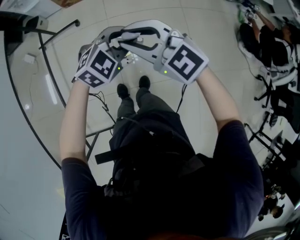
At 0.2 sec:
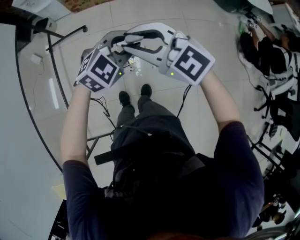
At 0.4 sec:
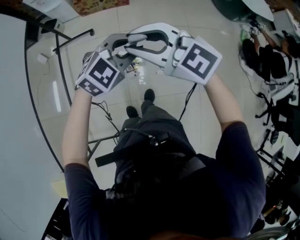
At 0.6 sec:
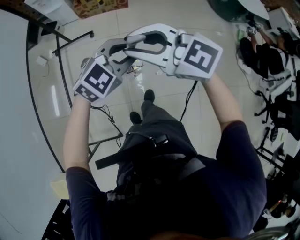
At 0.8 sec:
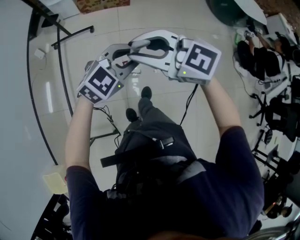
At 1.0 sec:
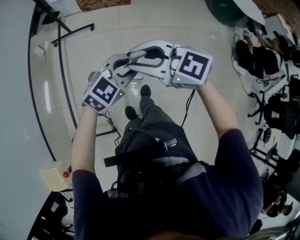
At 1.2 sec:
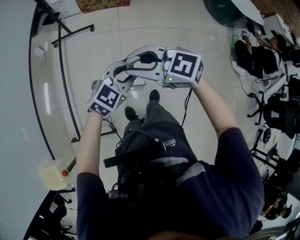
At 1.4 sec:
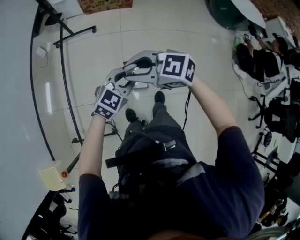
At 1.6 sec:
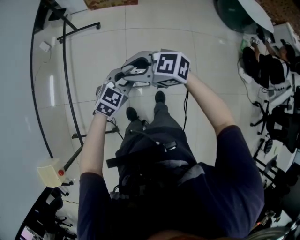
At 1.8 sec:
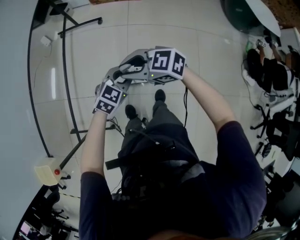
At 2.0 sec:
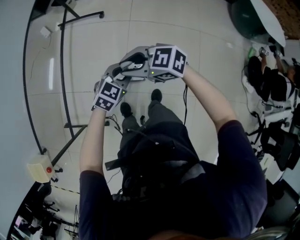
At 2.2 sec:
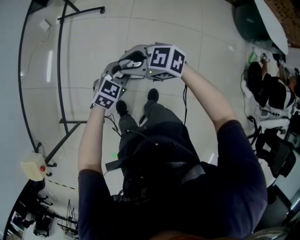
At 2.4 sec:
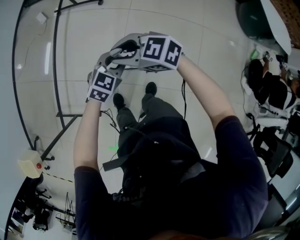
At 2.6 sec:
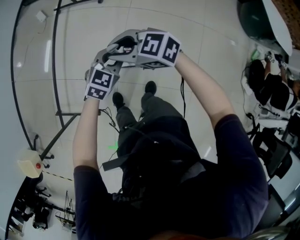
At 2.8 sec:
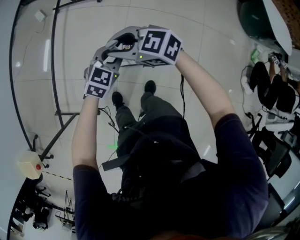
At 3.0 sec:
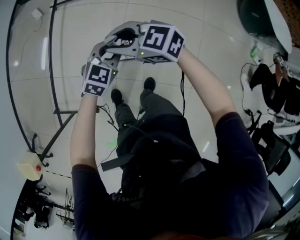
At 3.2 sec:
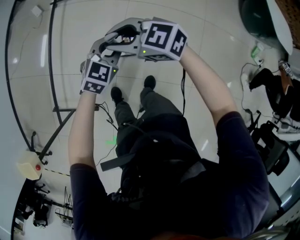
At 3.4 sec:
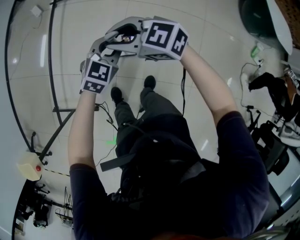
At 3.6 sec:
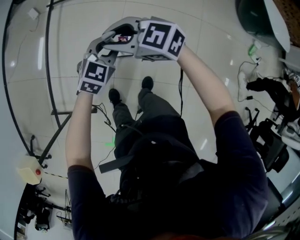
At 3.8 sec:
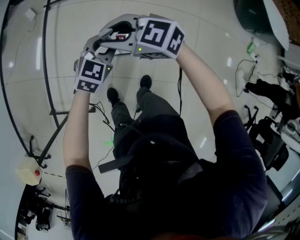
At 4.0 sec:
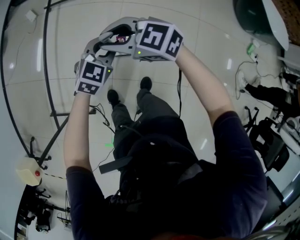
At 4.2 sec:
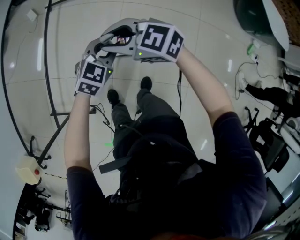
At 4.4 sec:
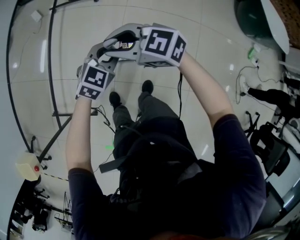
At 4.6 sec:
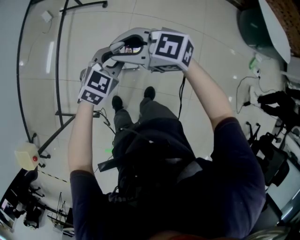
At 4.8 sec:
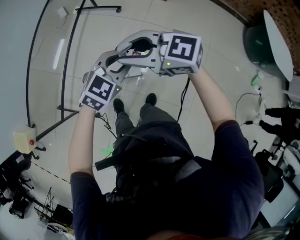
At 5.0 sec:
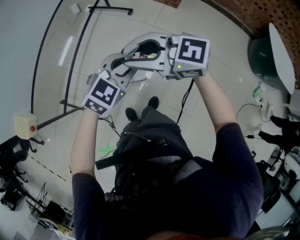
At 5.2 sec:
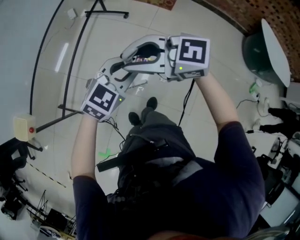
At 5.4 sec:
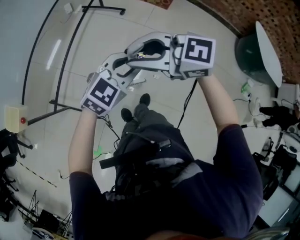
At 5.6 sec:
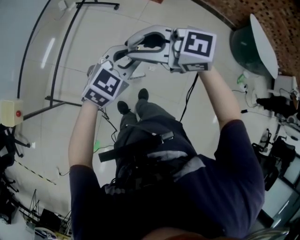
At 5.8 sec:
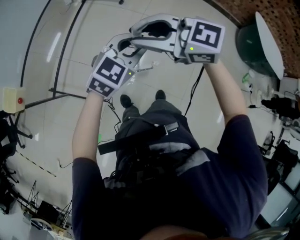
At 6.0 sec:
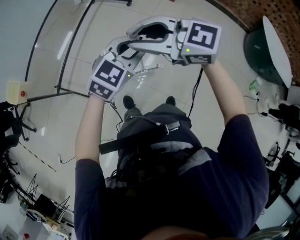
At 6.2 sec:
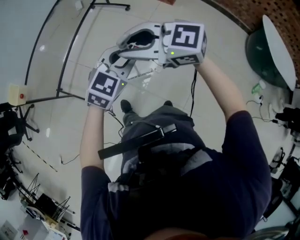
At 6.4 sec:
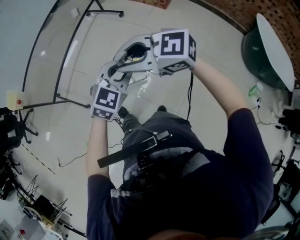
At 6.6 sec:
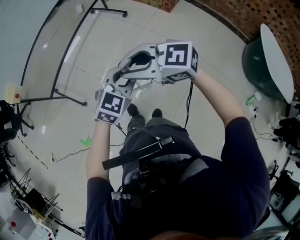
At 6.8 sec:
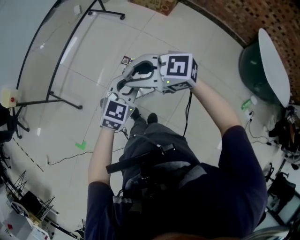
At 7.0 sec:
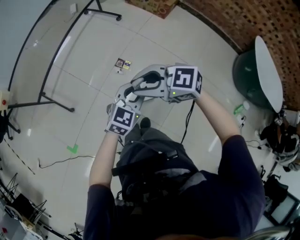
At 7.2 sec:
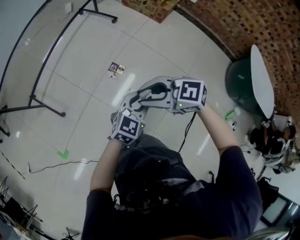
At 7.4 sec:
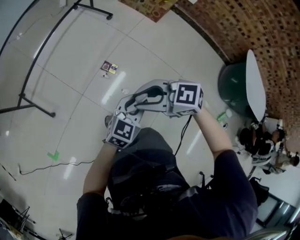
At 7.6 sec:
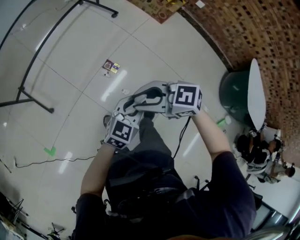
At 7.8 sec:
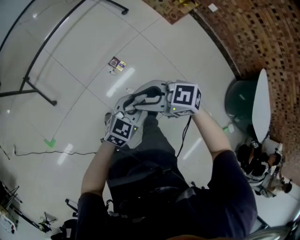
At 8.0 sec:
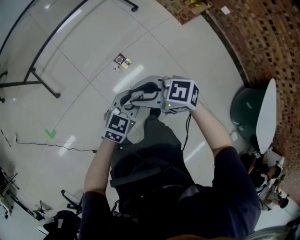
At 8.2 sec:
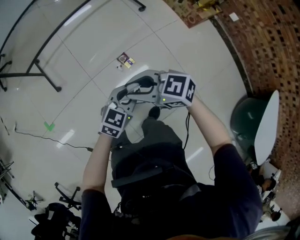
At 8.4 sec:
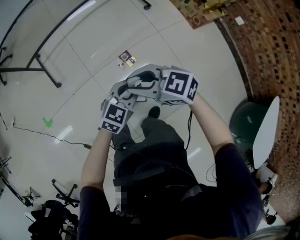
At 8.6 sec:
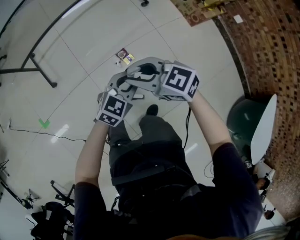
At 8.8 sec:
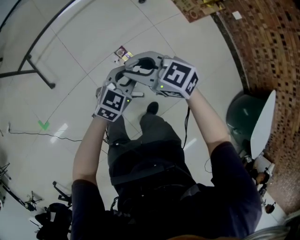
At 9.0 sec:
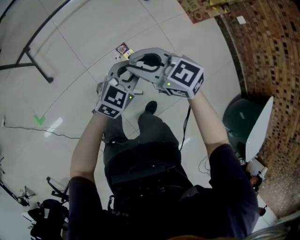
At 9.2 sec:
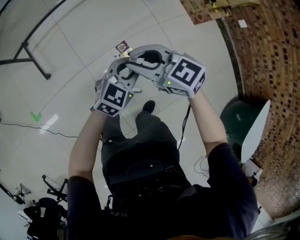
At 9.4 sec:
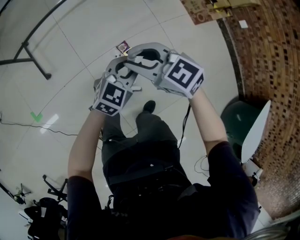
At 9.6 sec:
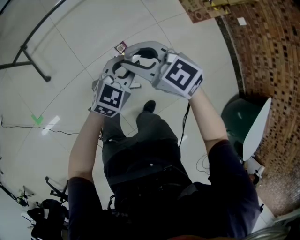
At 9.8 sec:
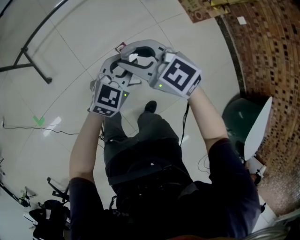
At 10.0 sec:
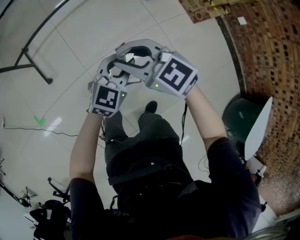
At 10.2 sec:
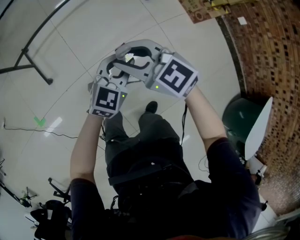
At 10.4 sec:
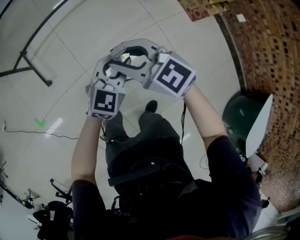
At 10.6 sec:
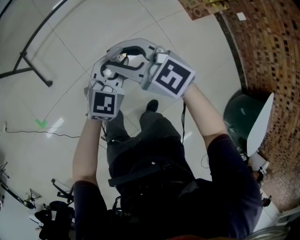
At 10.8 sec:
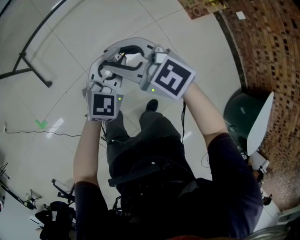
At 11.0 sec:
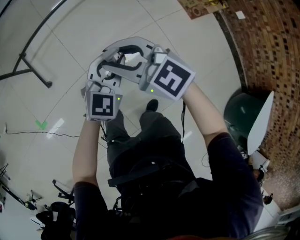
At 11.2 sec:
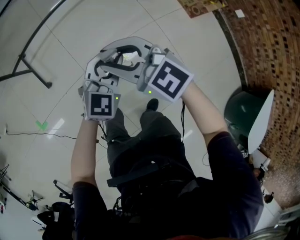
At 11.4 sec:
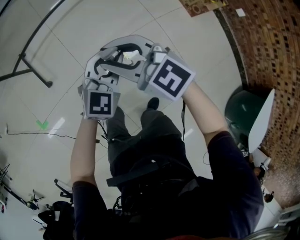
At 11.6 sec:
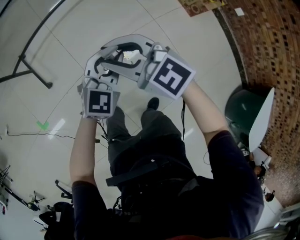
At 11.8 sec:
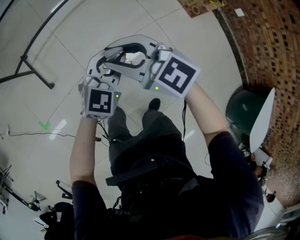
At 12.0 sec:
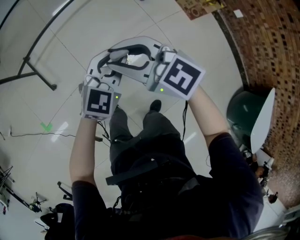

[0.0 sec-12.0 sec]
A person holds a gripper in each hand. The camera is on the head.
0.0 sec to 1.6 sec: The left gripper goes upward and returns, about 10 cm each way, and turns by some 30 degrees; the right gripper reaches about 10 cm upward, then returns, and rotates some 30 degrees.
1.6 sec to 3.0 sec: The left gripper shifts by about 15 cm, while the right gripper changes place by roughly 15 cm.
3.0 sec to 4.4 sec: There are only small adjustments of the grippers.
4.4 sec to 6.0 sec: The two grippers go roughly 20 cm upward.
6.0 sec to 7.6 sec: The left gripper ends up roughly 30 cm from where it was, and swivels some 20 degrees, while the right gripper changes place by approximately 30 cm, and turns by approximately 30 degrees.
7.6 sec to 9.0 sec: The left gripper ends up roughly 20 cm from where it was, while the right gripper changes place by about 20 cm.
9.0 sec to 10.4 sec: Both grippers travel together forward, some 5 cm.
10.4 sec to 12.0 sec: Both grippers move upward, about 5 cm.

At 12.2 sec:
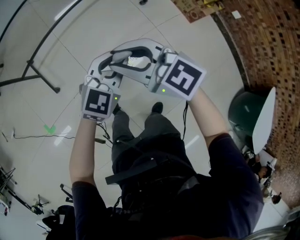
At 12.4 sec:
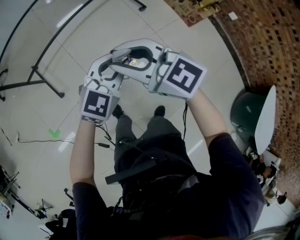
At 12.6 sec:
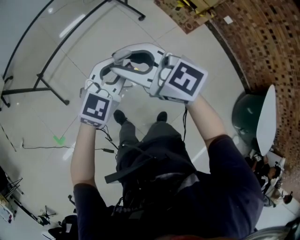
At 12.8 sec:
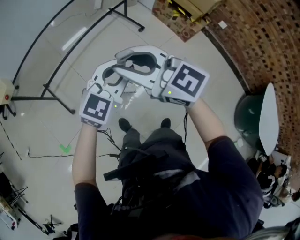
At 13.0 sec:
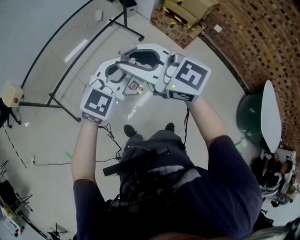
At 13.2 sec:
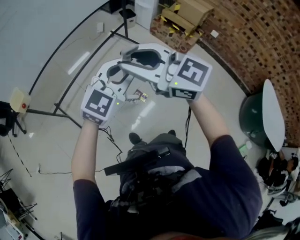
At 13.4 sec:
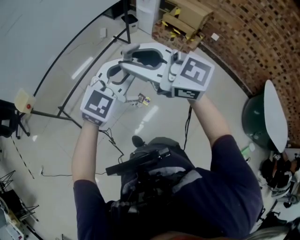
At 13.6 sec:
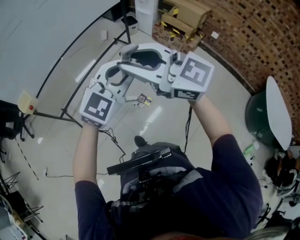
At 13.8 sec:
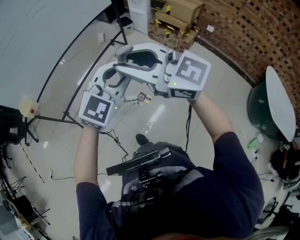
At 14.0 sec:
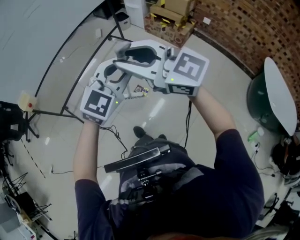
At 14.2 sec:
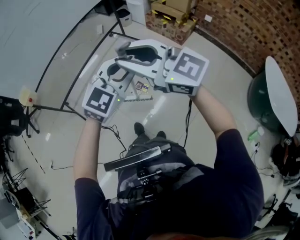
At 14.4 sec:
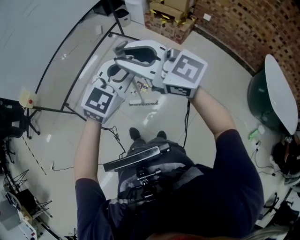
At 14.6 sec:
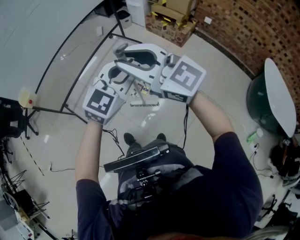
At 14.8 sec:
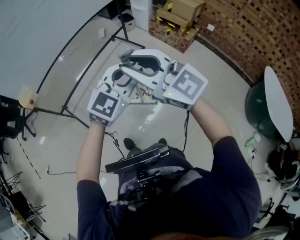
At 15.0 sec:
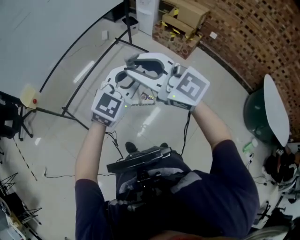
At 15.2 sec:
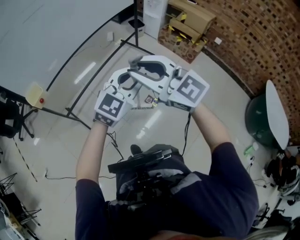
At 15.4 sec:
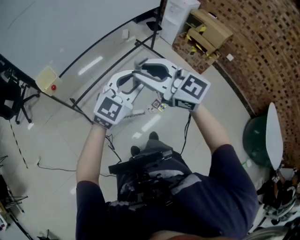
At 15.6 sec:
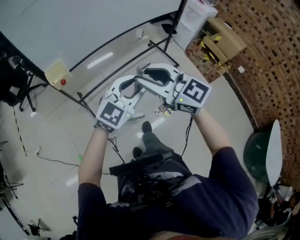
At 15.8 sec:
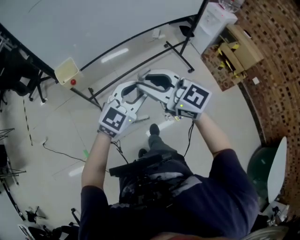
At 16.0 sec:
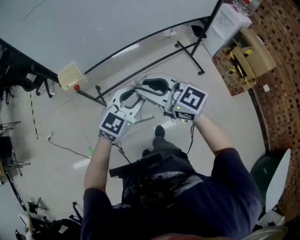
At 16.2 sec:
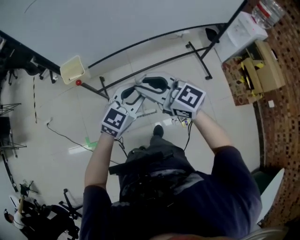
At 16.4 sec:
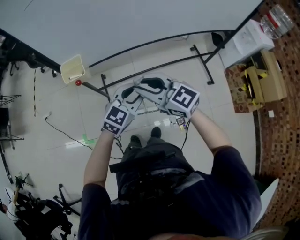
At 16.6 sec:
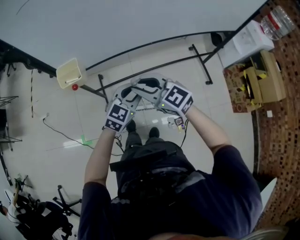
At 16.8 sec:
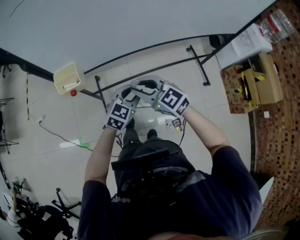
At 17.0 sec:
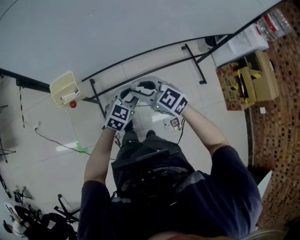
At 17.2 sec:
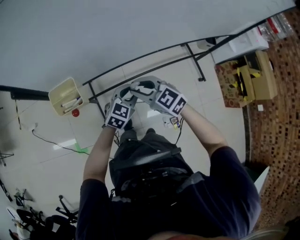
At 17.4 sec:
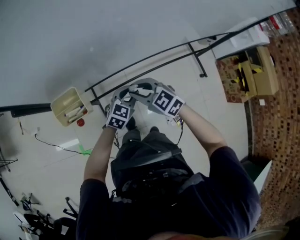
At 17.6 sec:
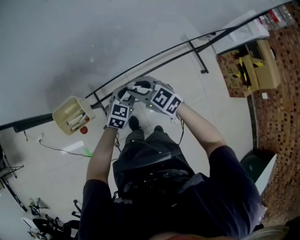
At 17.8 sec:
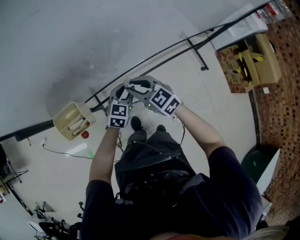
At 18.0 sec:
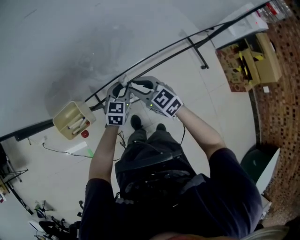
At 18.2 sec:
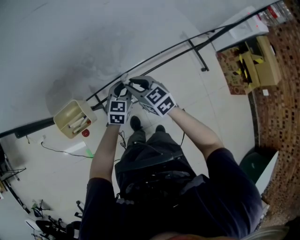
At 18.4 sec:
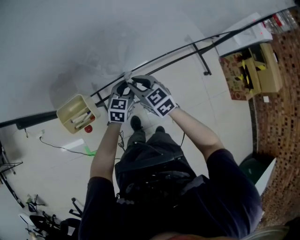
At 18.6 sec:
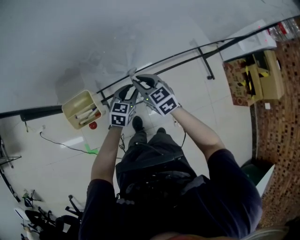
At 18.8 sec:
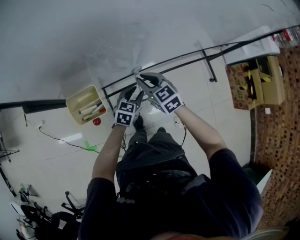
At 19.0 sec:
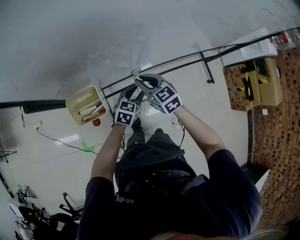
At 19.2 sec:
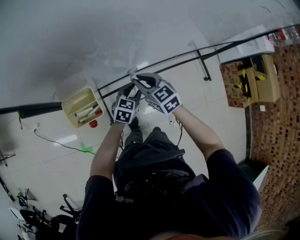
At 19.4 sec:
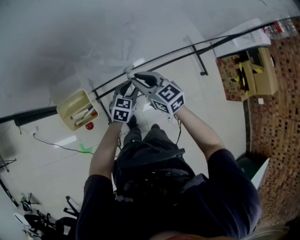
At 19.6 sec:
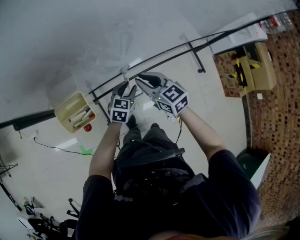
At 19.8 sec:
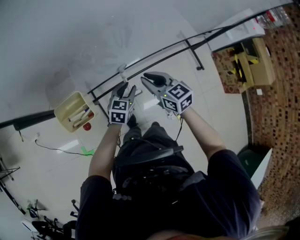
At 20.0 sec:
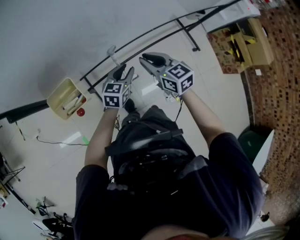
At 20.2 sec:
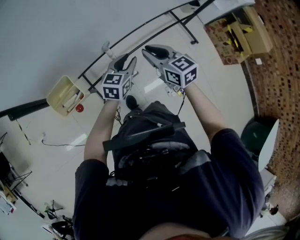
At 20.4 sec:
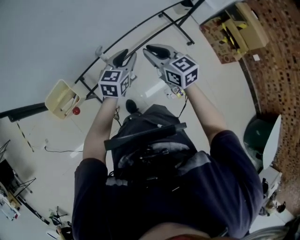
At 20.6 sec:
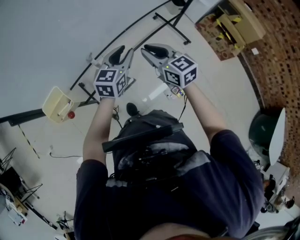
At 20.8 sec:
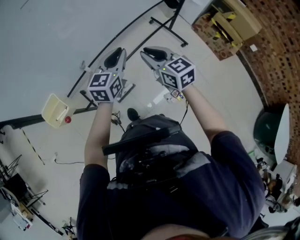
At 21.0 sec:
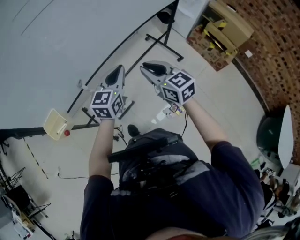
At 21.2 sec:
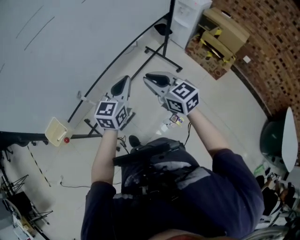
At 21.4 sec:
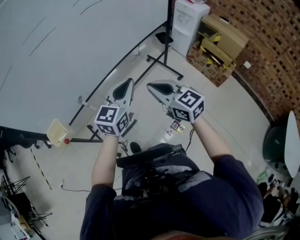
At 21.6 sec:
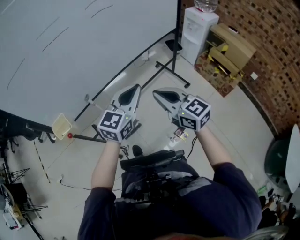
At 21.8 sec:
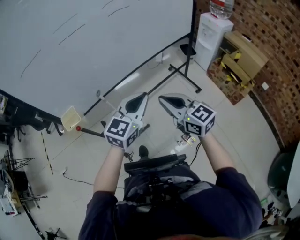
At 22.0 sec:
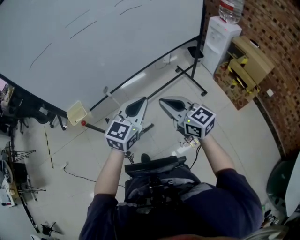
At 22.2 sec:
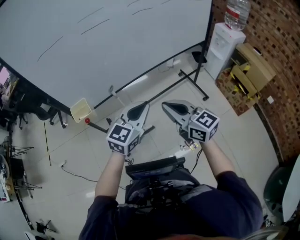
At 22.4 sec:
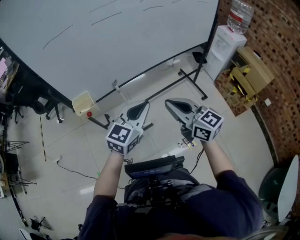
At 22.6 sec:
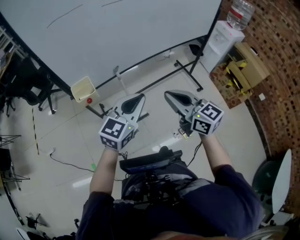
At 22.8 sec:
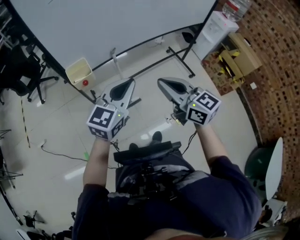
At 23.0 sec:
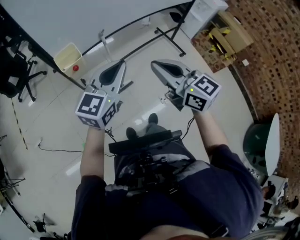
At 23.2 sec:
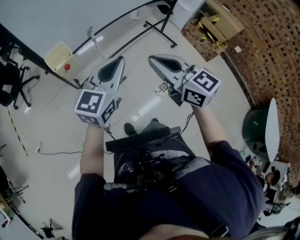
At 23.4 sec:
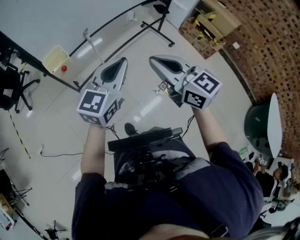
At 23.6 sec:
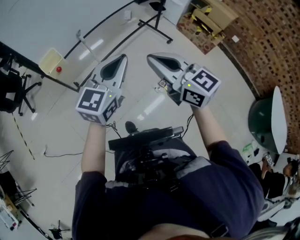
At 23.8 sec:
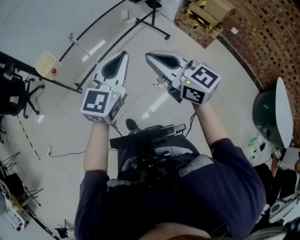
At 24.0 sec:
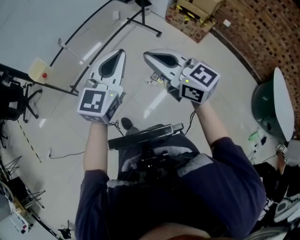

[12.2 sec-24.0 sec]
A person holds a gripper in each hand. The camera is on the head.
12.2 sec to 13.6 sec: Both grippers move upward, about 30 cm. The left gripper swivels approximately 30 degrees; the right gripper turns by approximately 20 degrees.
13.6 sec to 15.2 sec: The grippers both shift to the left by roughly 10 cm.
15.2 sec to 16.6 sec: The right gripper moves approximately 40 cm, and changes its angle by some 40 degrees, while the left gripper changes place by approximately 40 cm, and changes its angle by about 50 degrees.
16.6 sec to 18.2 sec: Both grippers move forward and downward, about 25 cm. The right gripper swivels approximately 30 degrees.
19.6 sec to 21.0 sec: The right gripper moves to the right and upward, approximately 30 cm, and turns by approximately 30 degrees; the left gripper shifts about 30 cm upward and to the right, swivels some 30 degrees, and closes its fingers.
21.0 sec to 22.6 sec: Both grippers move backward and upward, about 25 cm. The right gripper turns by approximately 20 degrees.
22.6 sec to 24.0 sec: The two grippers go roughly 25 cm backward and to the right.
